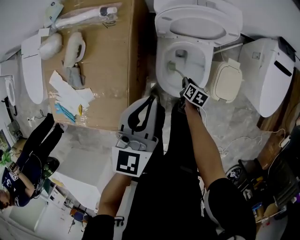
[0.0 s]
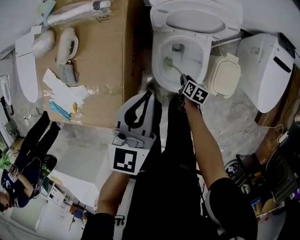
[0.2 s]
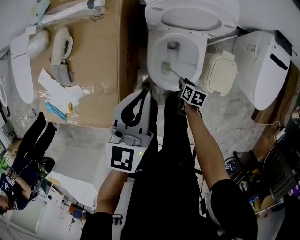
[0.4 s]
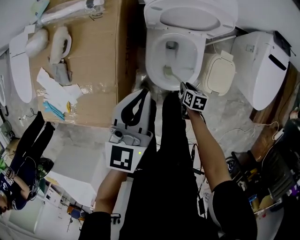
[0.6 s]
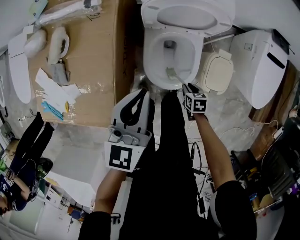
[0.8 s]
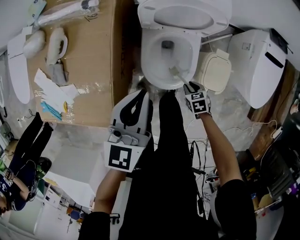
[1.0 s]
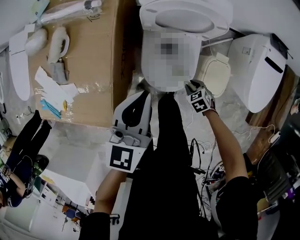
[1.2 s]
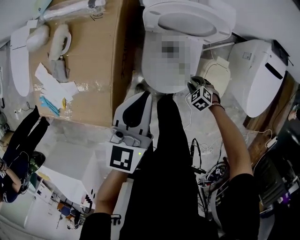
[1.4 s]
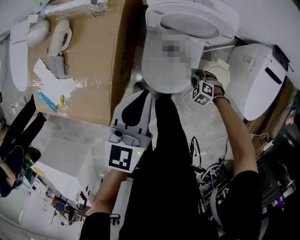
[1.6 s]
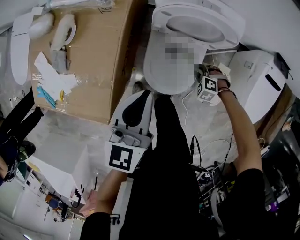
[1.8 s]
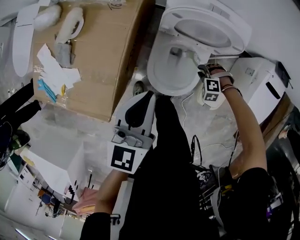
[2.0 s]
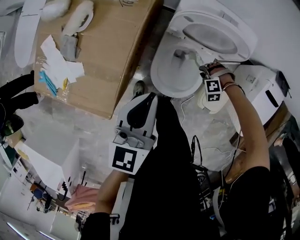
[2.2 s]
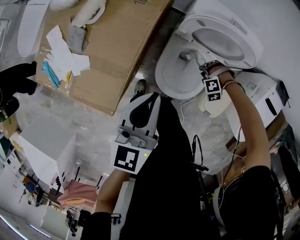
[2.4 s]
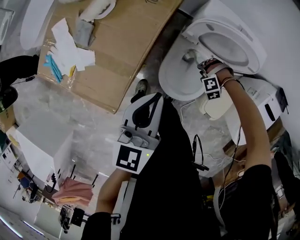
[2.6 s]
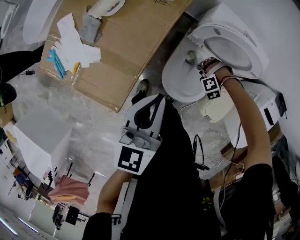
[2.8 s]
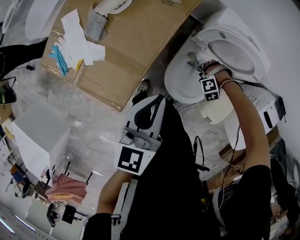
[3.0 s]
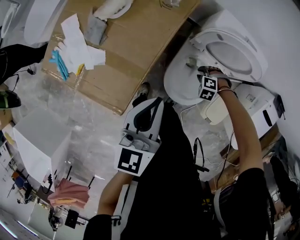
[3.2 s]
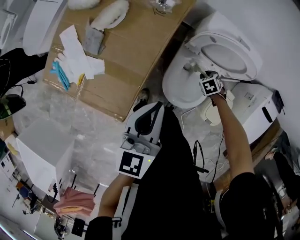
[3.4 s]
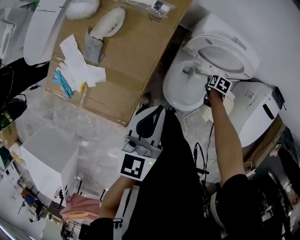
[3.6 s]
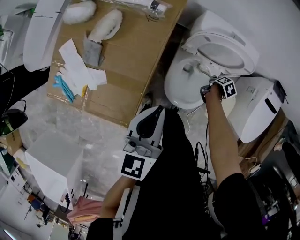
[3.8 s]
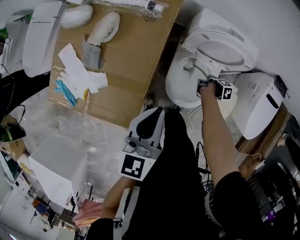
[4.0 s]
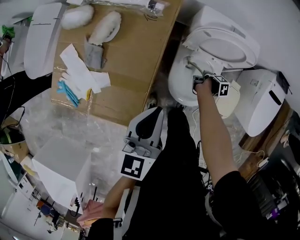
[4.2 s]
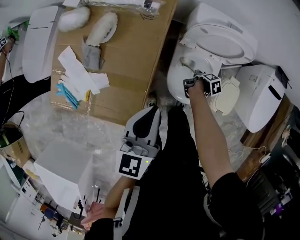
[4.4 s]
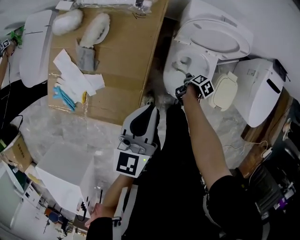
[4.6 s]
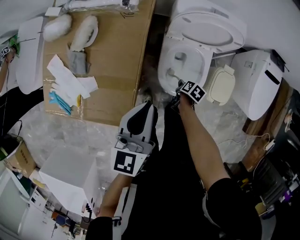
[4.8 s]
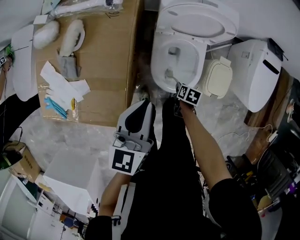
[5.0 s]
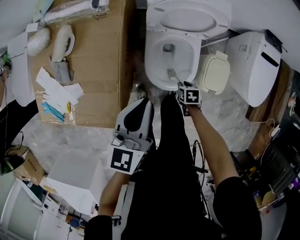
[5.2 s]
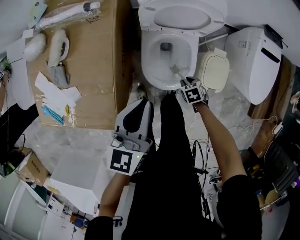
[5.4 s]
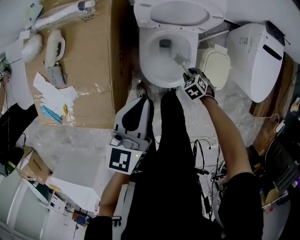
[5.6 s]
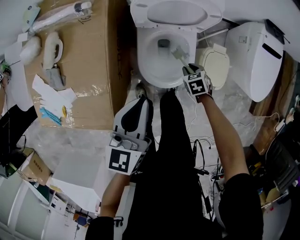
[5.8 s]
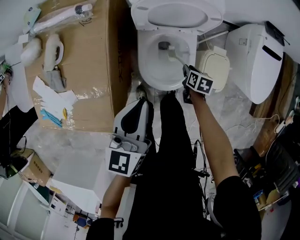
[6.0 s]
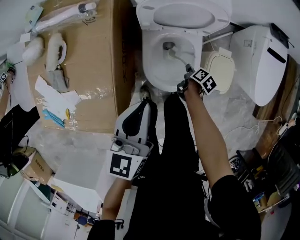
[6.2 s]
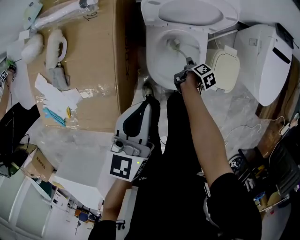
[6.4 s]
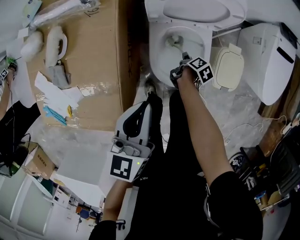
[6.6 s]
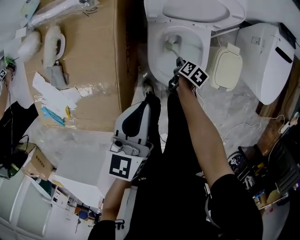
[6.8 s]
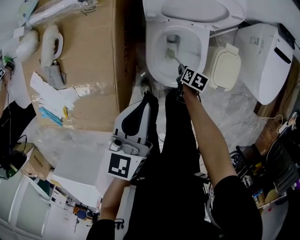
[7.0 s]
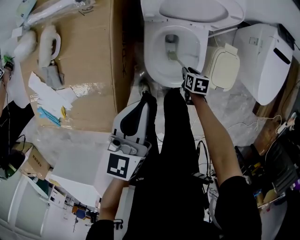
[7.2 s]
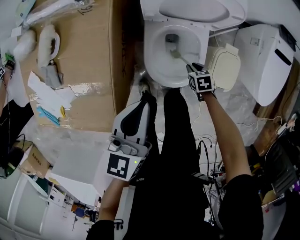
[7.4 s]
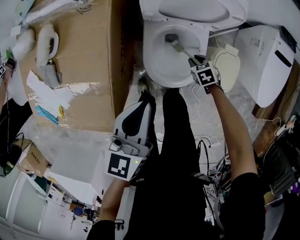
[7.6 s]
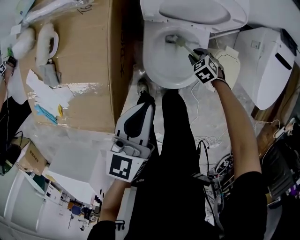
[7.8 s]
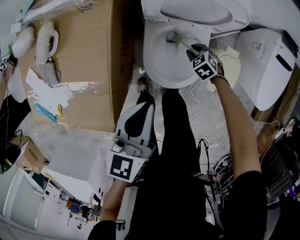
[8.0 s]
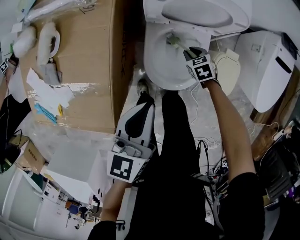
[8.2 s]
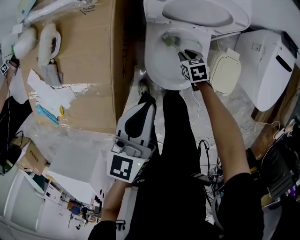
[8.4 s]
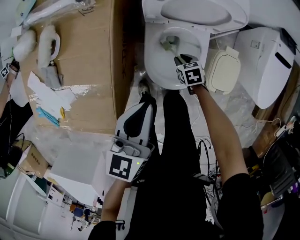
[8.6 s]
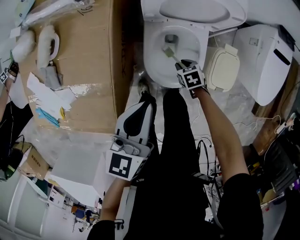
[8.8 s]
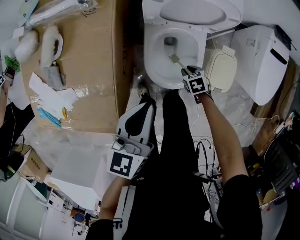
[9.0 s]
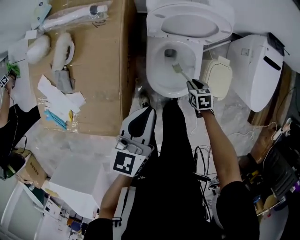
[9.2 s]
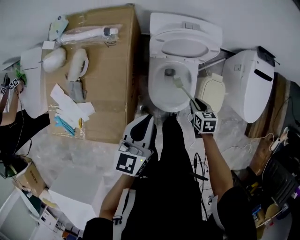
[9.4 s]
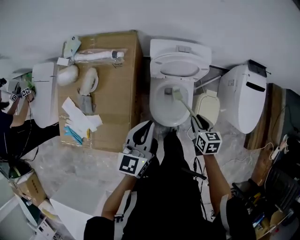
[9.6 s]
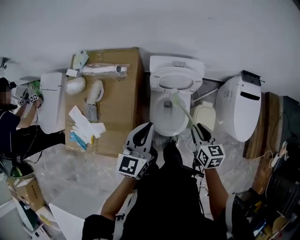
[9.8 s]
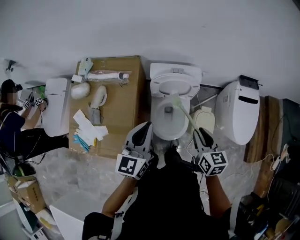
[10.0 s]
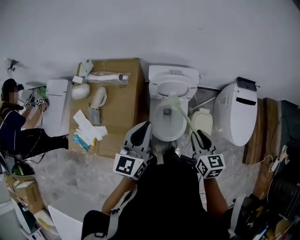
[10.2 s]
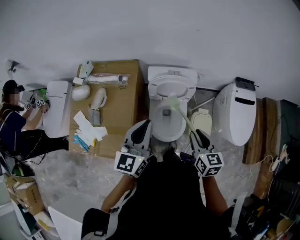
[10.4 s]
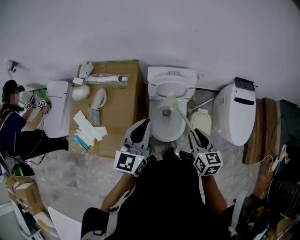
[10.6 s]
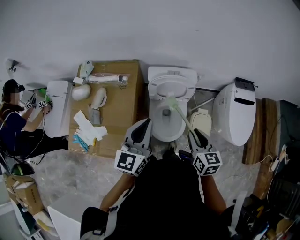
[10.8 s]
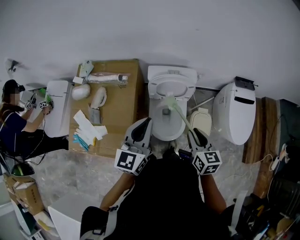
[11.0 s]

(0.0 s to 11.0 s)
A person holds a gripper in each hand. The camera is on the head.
0.0 s - 1.6 s: The right gripper changes place by roughly 10 cm, and twists some 100 degrees counterclockwise, seen from behind.
1.6 s - 3.2 s: The left gripper moves approximately 15 cm. Meanwhile the right gripper shifts by some 15 cm, and swivels approximately 40 degrees.
3.2 s - 4.8 s: The right gripper ends up some 10 cm from where it was, and rolls clockwise, seen from behind, by some 150 degrees.
4.8 s - 6.2 s: The right gripper changes place by about 15 cm, and turns by about 20 degrees; the left gripper shifts by roughly 10 cm.
6.2 s - 7.8 s: The right gripper goes roughly 5 cm forward, and rolls counterclockwise, seen from behind, by roughly 100 degrees. Meanwhile the left gripper goes approximately 5 cm downward.
7.8 s - 9.4 s: The left gripper travels upward by approximately 10 cm. The right gripper shifts approximately 20 cm upward, and rolls clockwise, seen from behind, by about 40 degrees.
9.4 s - 11.0 s: The right gripper travels upward by some 35 cm, and swivels approximately 30 degrees; the left gripper heads upward, covering roughly 25 cm.

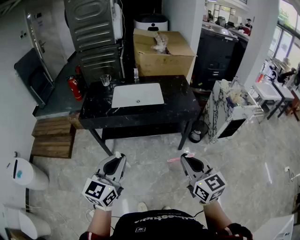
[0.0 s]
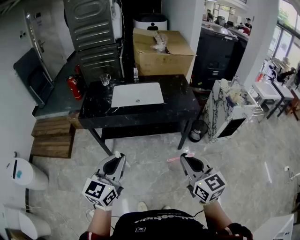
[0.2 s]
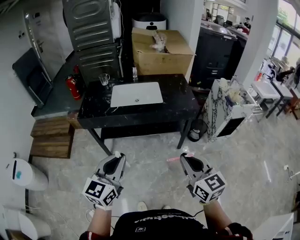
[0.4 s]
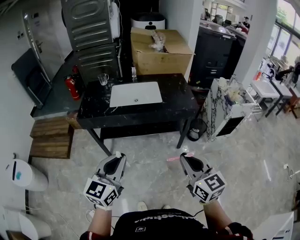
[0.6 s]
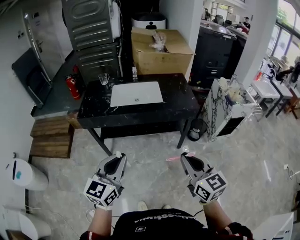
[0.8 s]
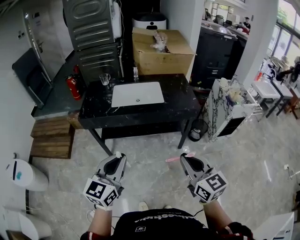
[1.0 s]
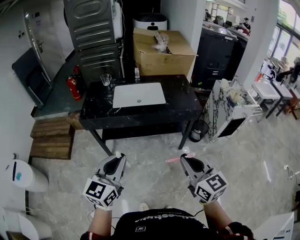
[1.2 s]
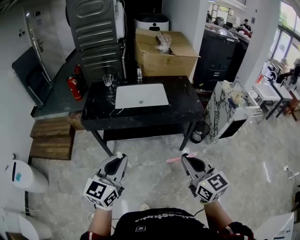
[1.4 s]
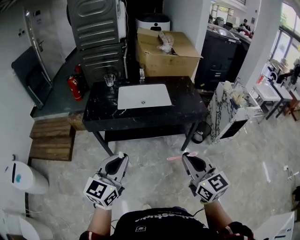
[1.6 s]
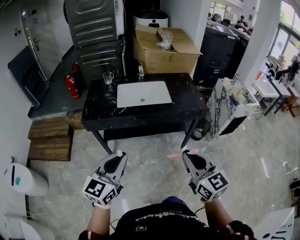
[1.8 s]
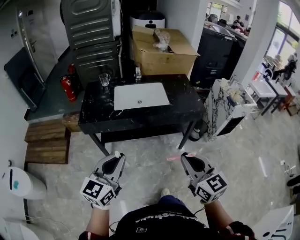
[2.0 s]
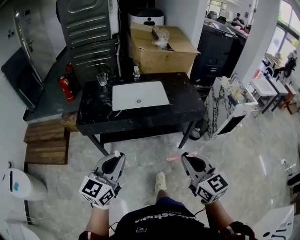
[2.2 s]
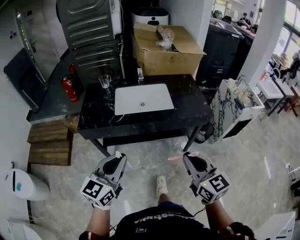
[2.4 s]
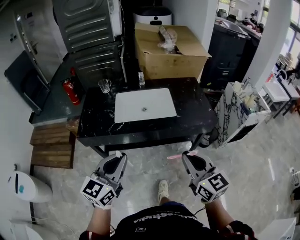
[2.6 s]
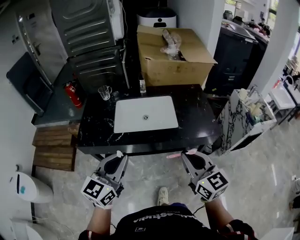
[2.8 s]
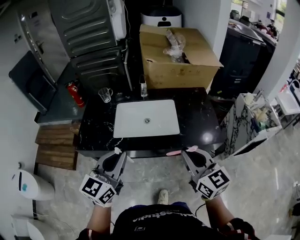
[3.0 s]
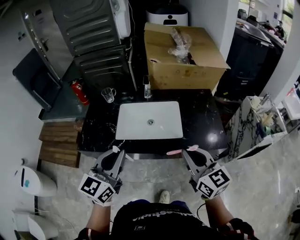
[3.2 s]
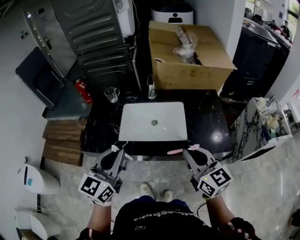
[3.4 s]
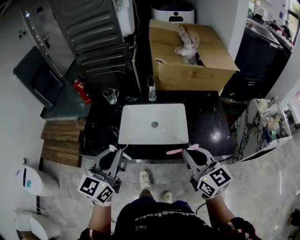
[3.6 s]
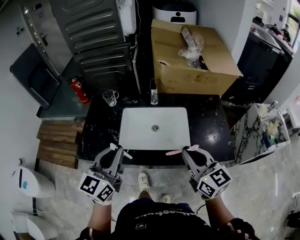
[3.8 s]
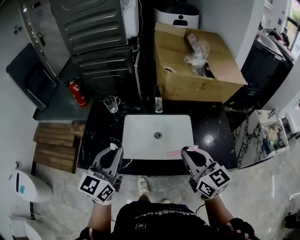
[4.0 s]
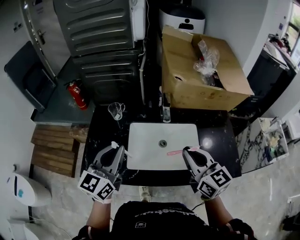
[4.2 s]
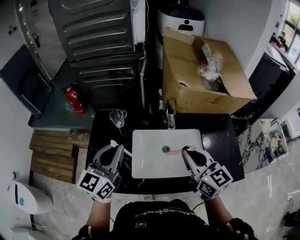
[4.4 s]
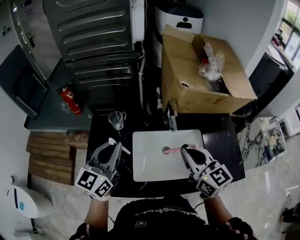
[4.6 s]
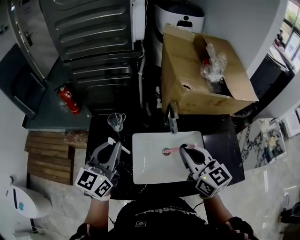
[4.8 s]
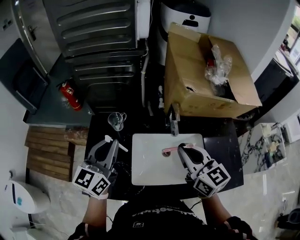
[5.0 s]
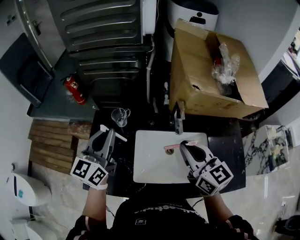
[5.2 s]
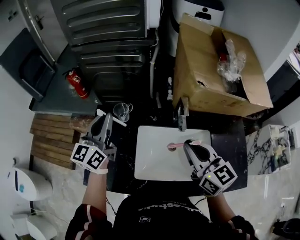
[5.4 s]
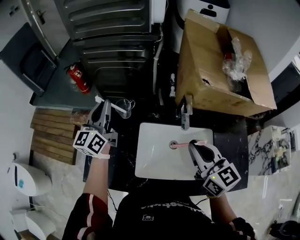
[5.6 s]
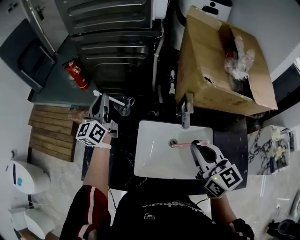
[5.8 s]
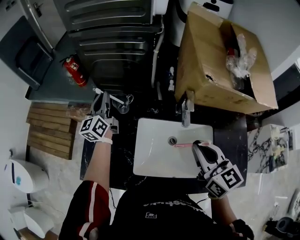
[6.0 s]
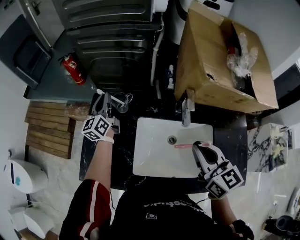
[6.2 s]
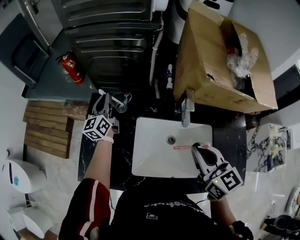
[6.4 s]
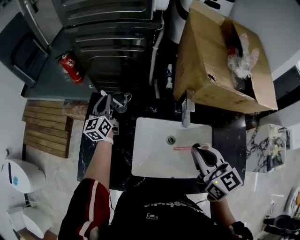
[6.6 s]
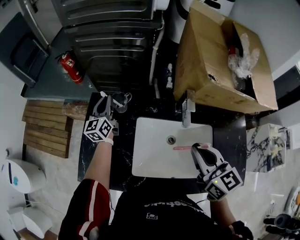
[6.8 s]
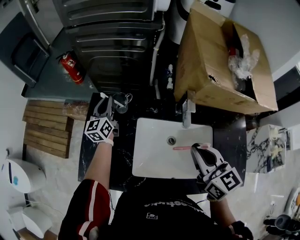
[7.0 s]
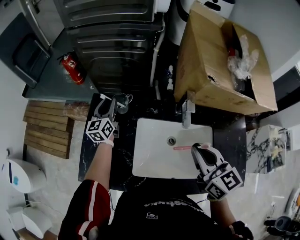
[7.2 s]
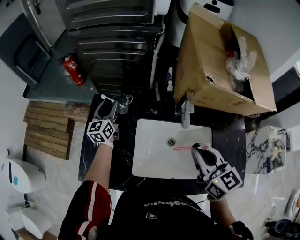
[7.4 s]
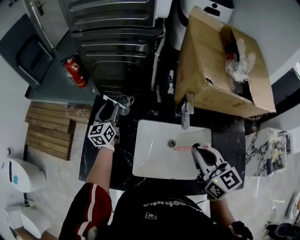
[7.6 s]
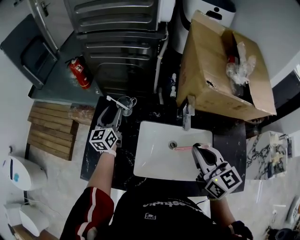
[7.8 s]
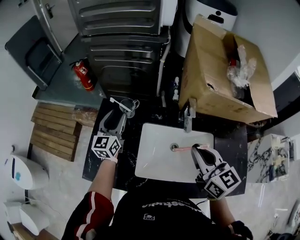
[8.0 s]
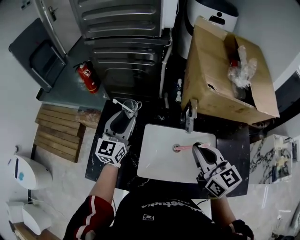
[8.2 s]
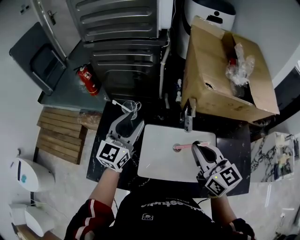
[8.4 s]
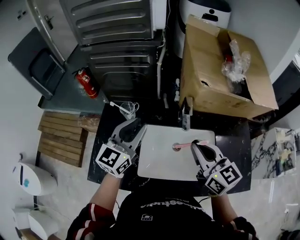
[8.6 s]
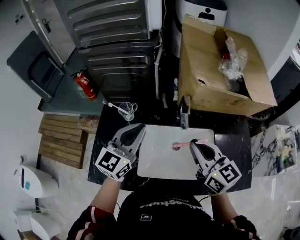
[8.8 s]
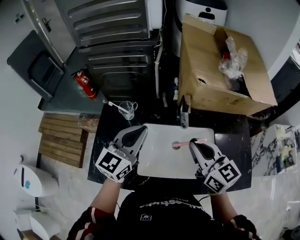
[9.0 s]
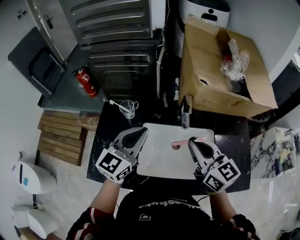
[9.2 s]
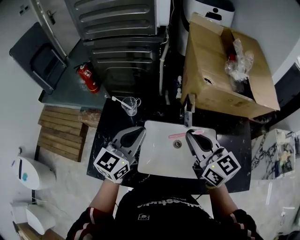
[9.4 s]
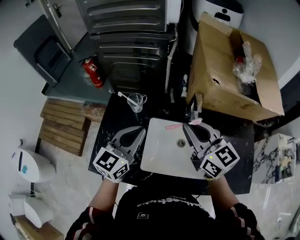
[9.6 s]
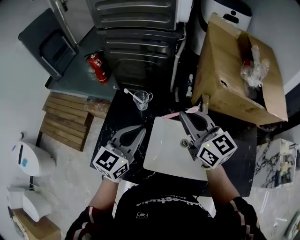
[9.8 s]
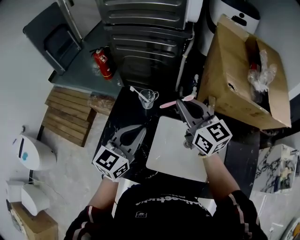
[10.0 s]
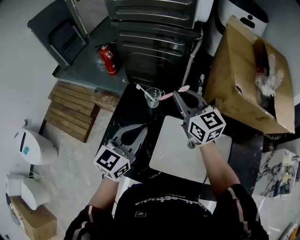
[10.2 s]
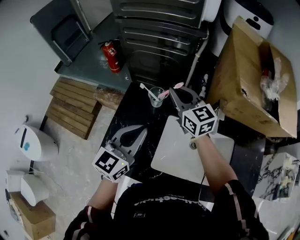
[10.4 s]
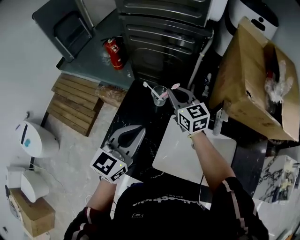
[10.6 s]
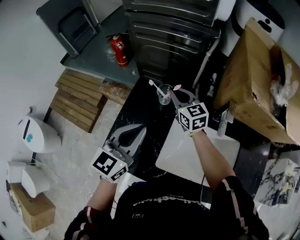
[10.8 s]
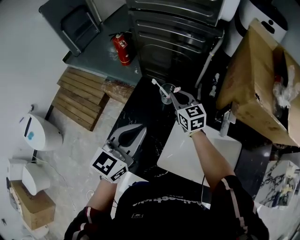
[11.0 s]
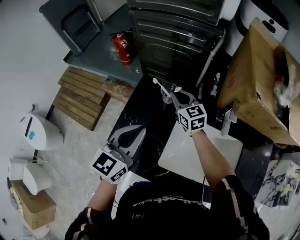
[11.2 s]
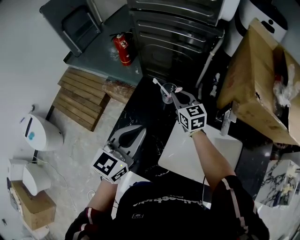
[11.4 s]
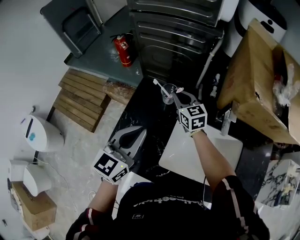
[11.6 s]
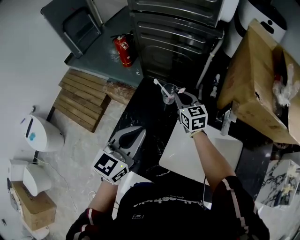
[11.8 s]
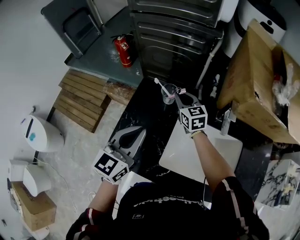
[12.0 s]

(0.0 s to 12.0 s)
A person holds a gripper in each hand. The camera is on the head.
0.0 s - 1.6 s: Both grippers travel together to the left, some 10 cm.
1.6 s - 3.0 s: The grippers both shift forward by roughly 30 cm.
3.0 s - 4.4 s: The grippers both shift forward and to the left by approximately 35 cm.
4.4 s - 6.0 s: The right gripper heads forward, covering about 10 cm; the left gripper travels forward and downward by approximately 30 cm, and rotates some 30 degrees.
6.0 s - 7.6 s: The left gripper moves downward, roughly 10 cm, and opens.
7.6 s - 9.0 s: The left gripper moves backward, upward and to the right, roughly 30 cm, rotates approximately 30 degrees, and closes.
9.0 s - 10.4 s: The left gripper shifts roughly 15 cm to the left. Meanwhile the right gripper heads to the left and forward, covering about 30 cm.
10.4 s - 12.0 s: The right gripper shifts roughly 10 cm downward, while the left gripper changes place by some 5 cm.

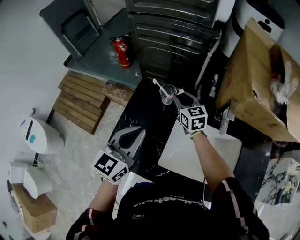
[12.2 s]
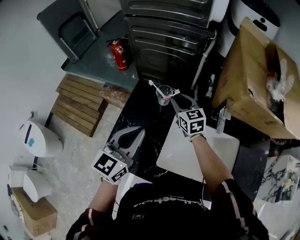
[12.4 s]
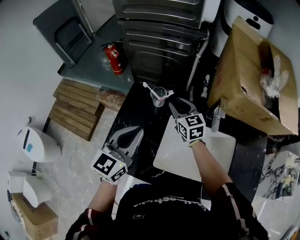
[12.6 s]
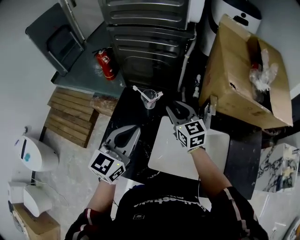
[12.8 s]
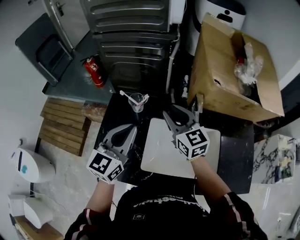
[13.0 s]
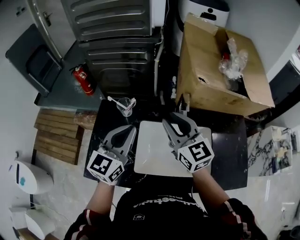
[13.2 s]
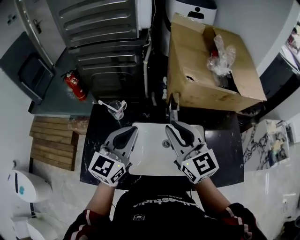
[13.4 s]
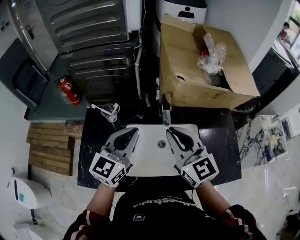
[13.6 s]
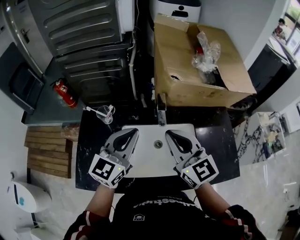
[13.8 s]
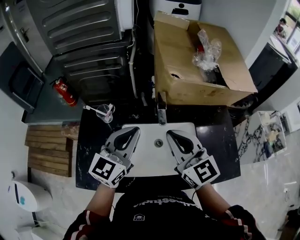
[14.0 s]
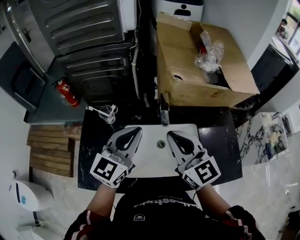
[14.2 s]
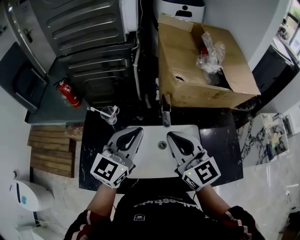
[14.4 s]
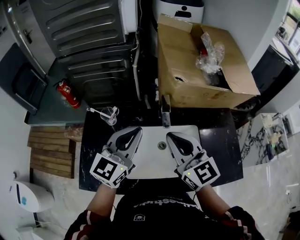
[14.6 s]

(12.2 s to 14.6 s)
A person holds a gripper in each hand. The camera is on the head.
12.2 s - 13.4 s: The right gripper travels backward, upward and to the right by some 35 cm, and swivels roughly 20 degrees. The left gripper shifts about 15 cm to the right.
13.4 s - 14.6 s: The left gripper moves roughly 5 cm.
